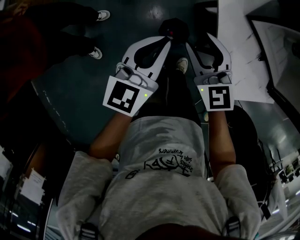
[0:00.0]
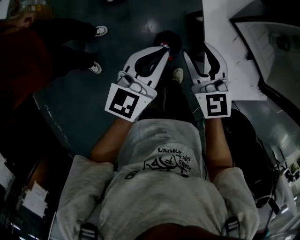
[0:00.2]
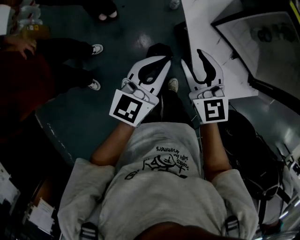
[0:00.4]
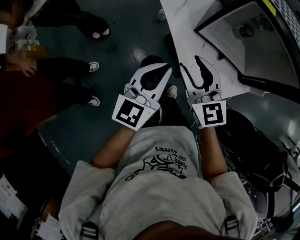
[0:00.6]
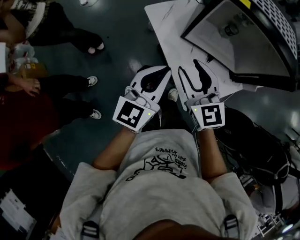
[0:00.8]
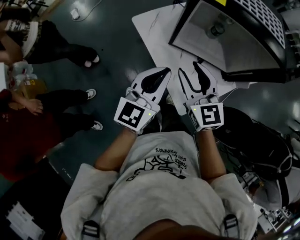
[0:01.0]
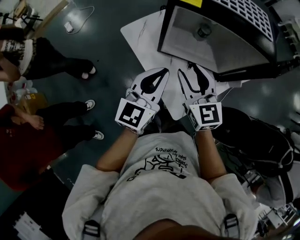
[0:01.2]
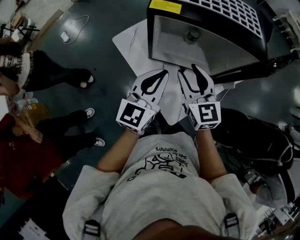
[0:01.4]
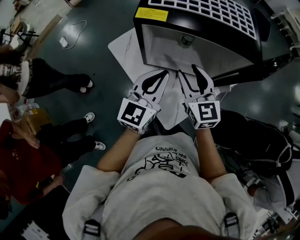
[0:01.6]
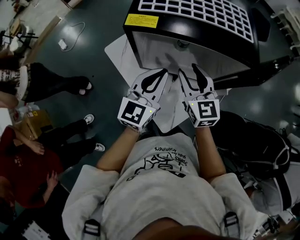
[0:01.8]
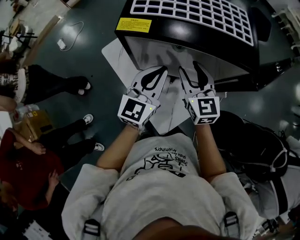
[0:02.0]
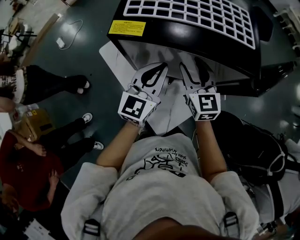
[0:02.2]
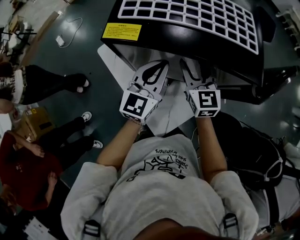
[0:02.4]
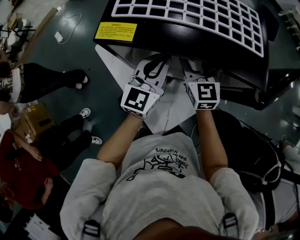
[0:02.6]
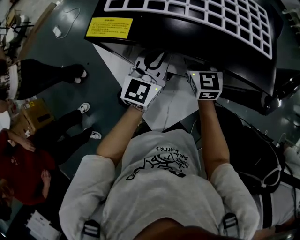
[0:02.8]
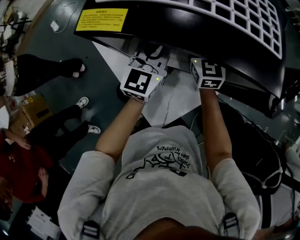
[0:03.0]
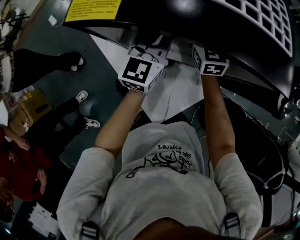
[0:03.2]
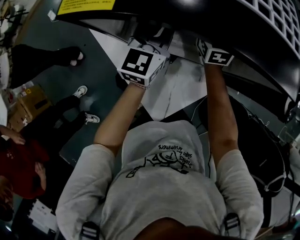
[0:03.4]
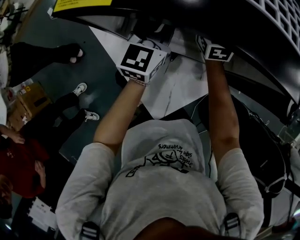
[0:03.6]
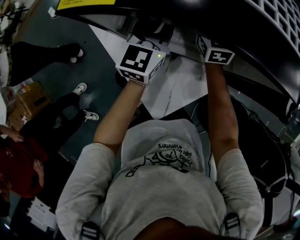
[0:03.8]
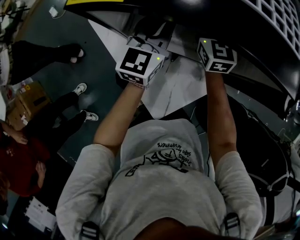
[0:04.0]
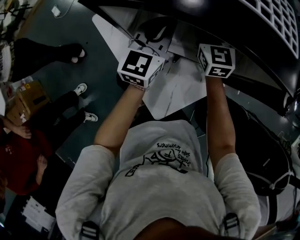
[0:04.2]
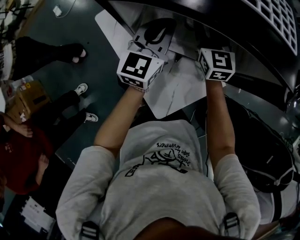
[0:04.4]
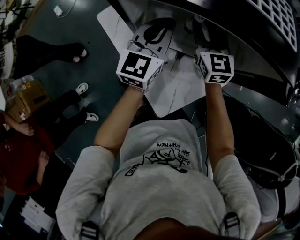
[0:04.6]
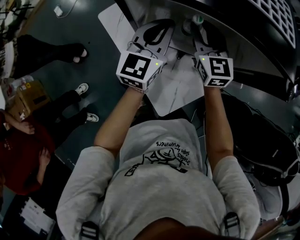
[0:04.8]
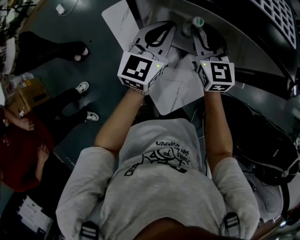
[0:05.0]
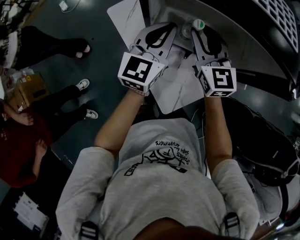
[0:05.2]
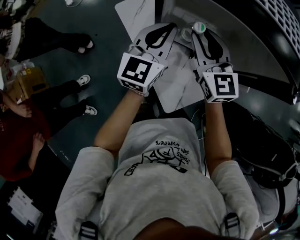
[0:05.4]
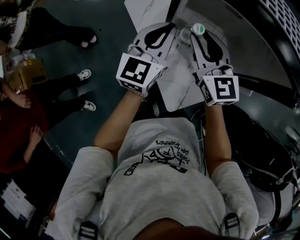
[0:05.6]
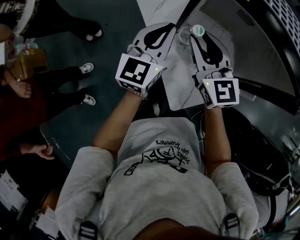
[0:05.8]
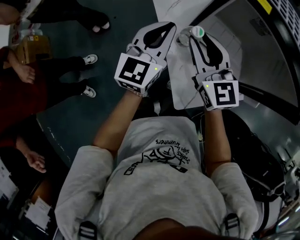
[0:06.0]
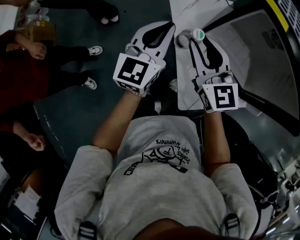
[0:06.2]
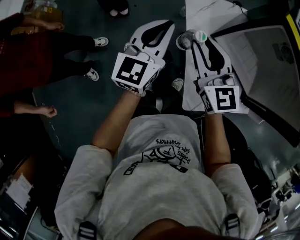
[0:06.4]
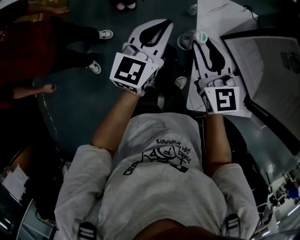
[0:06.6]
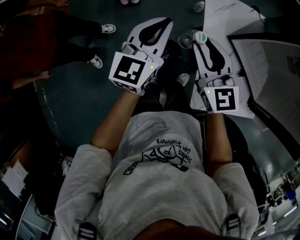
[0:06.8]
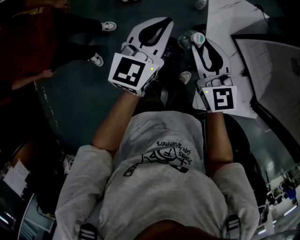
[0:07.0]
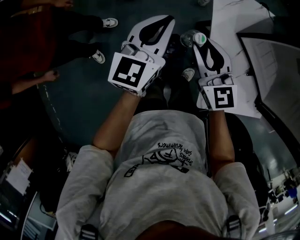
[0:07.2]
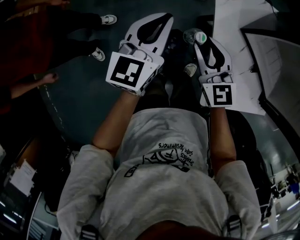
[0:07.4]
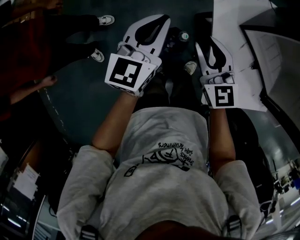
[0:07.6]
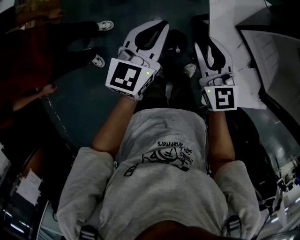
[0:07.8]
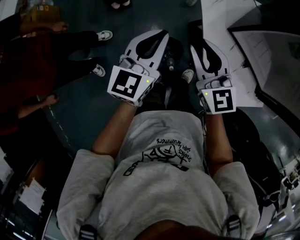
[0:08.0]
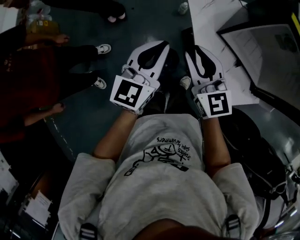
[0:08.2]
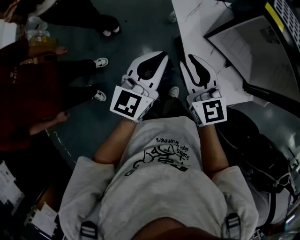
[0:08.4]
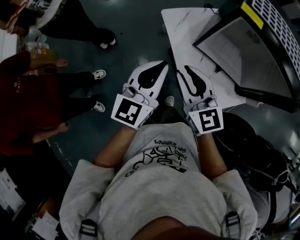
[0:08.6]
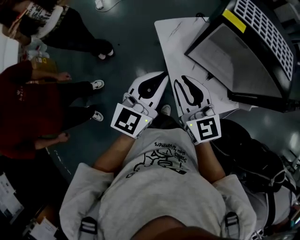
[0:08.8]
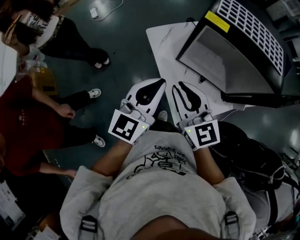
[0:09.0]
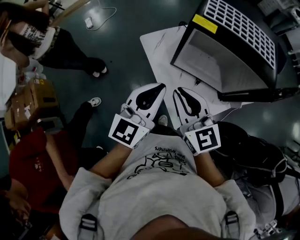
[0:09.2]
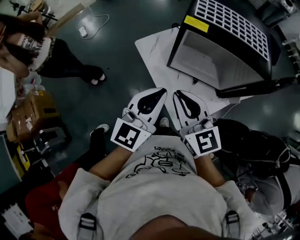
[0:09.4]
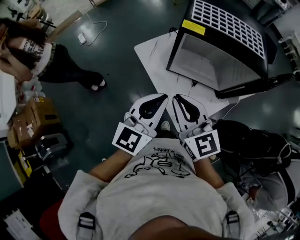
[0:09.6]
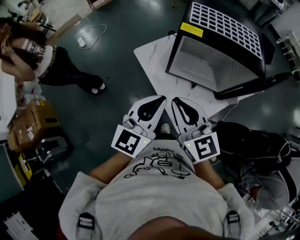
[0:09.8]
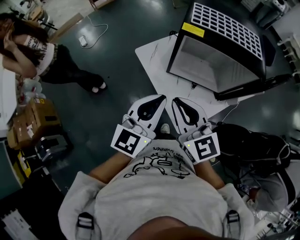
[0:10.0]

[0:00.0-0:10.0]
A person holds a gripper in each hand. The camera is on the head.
0.0 to 1.4 s: The left gripper changes place by about 35 cm, and swivels some 30 degrees. Meanwhile the right gripper shifts by roughly 35 cm, and turns by roughly 40 degrees.
1.4 to 2.8 s: The two grippers go approximately 20 cm forward and to the right.
2.8 to 4.2 s: The right gripper closes. The left gripper shifts by some 5 cm.
4.2 to 5.8 s: The right gripper is displaced backward and to the left by approximately 25 cm, and turns by approximately 20 degrees; the left gripper heads to the left and backward, covering roughly 20 cm.
5.8 to 7.2 s: The right gripper heads to the left and downward, covering about 20 cm, and rotates roughly 20 degrees; the left gripper heads to the left, covering approximately 20 cm, and turns by about 20 degrees.
7.2 to 8.6 s: The right gripper shifts roughly 15 cm upward, while the left gripper heads upward and to the right, covering roughly 15 cm, and changes its angle by some 20 degrees.
8.6 to 10.0 s: Both grippers move upward and to the right, about 15 cm.

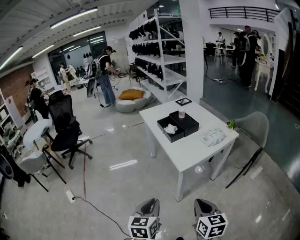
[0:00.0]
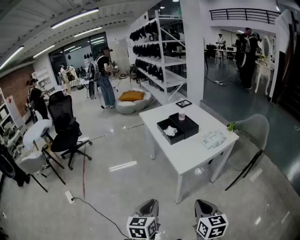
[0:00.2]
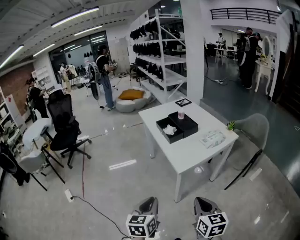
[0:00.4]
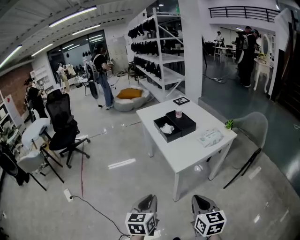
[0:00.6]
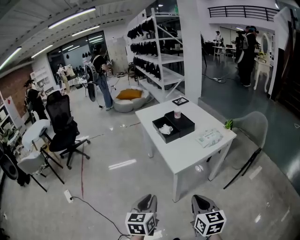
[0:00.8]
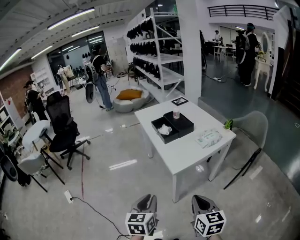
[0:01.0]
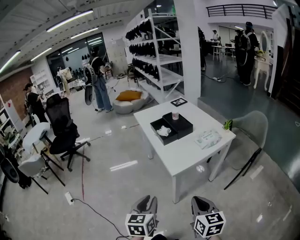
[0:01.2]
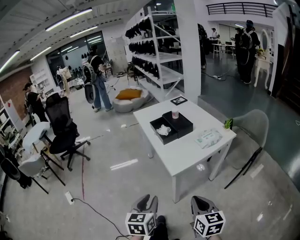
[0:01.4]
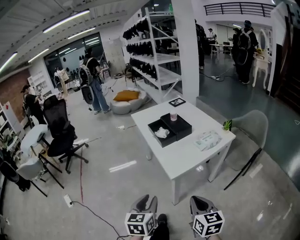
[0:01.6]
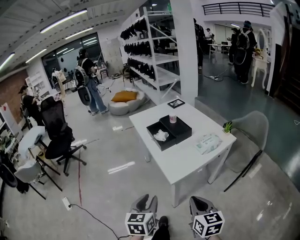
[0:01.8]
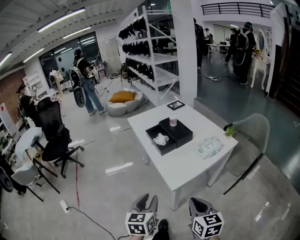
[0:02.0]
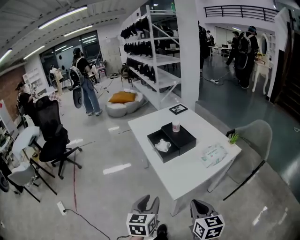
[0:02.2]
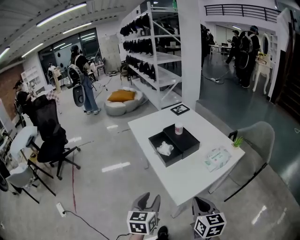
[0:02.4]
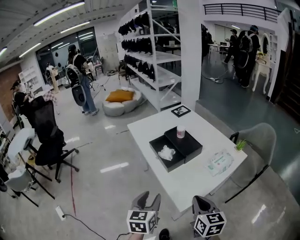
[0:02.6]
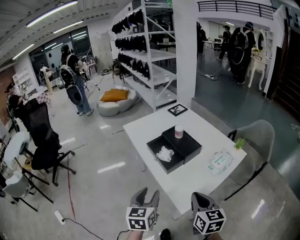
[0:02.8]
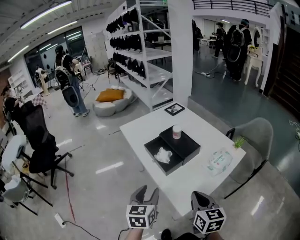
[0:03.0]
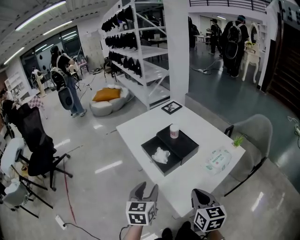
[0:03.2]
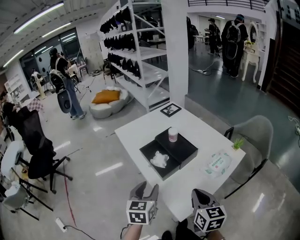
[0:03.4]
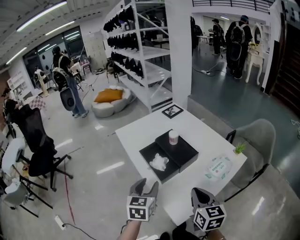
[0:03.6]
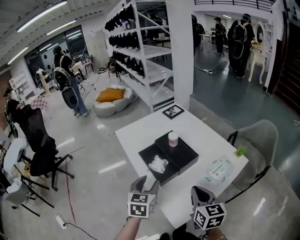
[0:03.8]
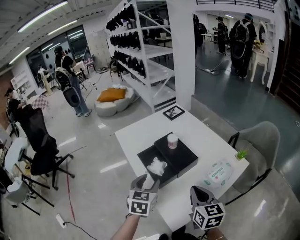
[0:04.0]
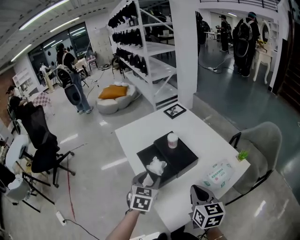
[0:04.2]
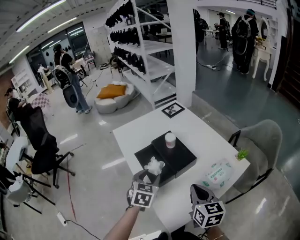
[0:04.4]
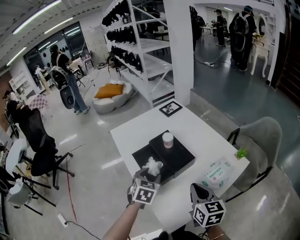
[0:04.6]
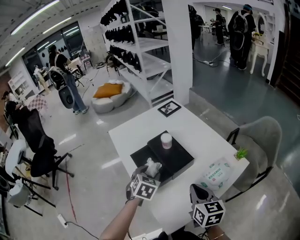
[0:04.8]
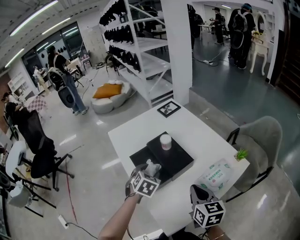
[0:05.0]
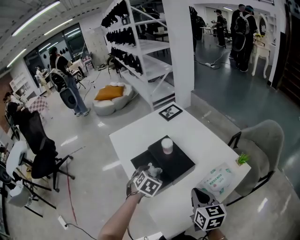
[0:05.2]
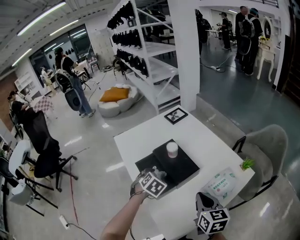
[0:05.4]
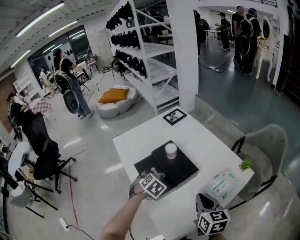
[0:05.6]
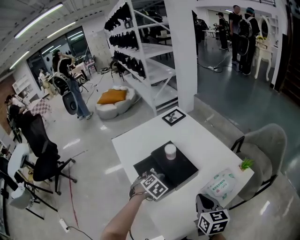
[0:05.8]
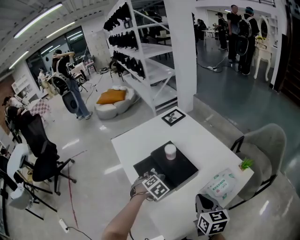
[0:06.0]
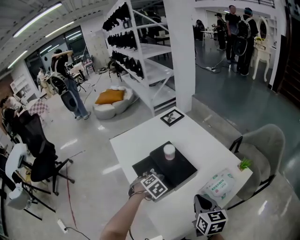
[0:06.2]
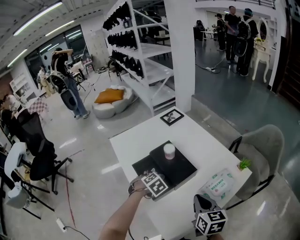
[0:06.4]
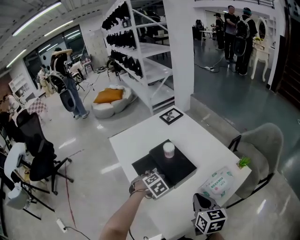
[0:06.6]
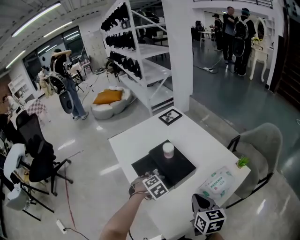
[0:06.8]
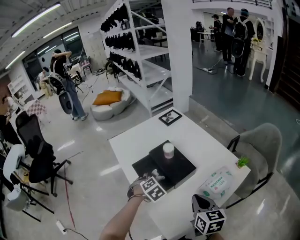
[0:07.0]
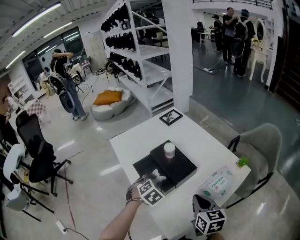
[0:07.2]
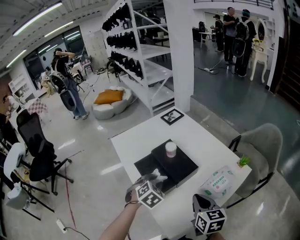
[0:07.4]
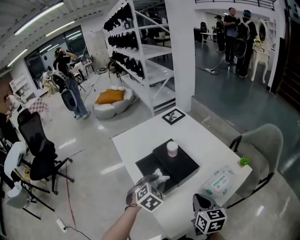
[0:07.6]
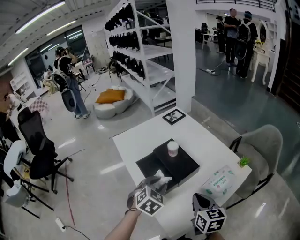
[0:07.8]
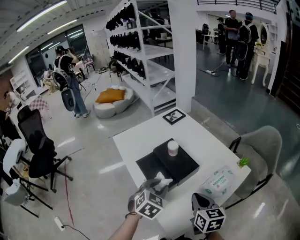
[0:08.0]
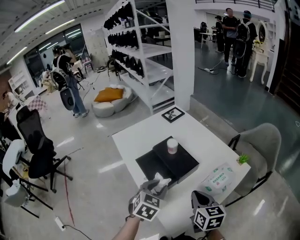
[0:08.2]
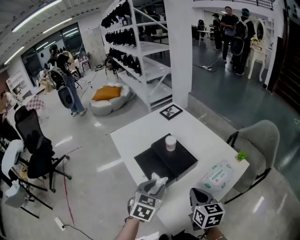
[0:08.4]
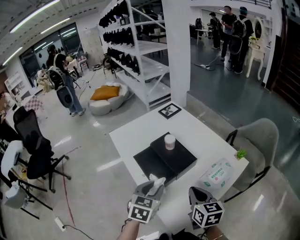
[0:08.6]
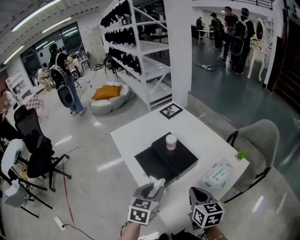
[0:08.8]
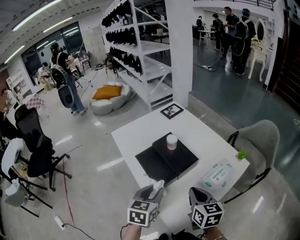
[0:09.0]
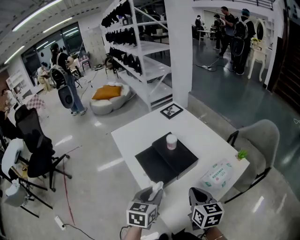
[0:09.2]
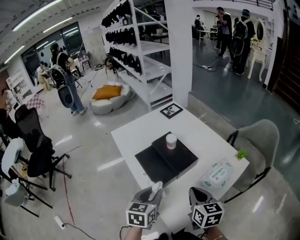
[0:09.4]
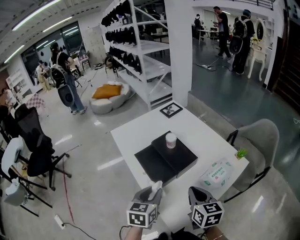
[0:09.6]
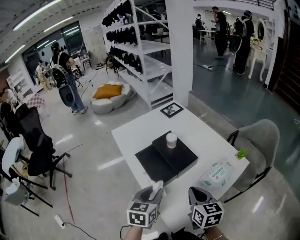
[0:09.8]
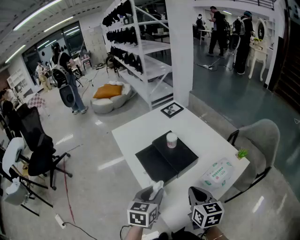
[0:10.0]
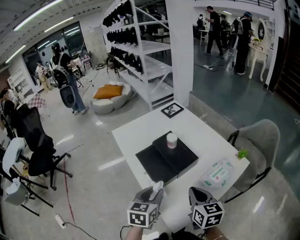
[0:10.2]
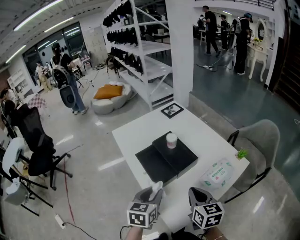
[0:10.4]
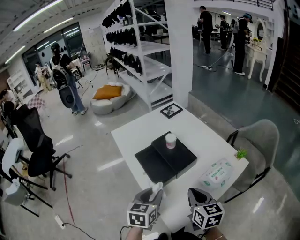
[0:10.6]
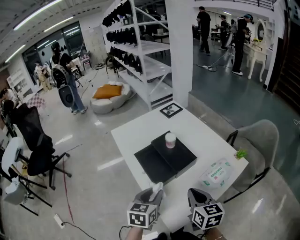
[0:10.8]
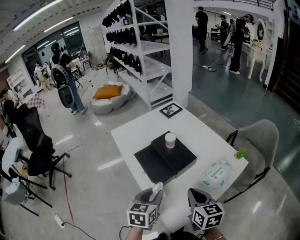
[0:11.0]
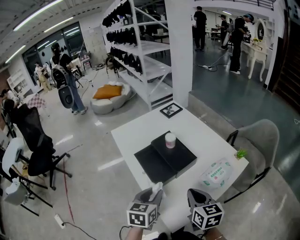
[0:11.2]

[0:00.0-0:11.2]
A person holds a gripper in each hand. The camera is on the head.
0.0 to 1.6 s: The two grippers go about 5 cm forward.
1.6 to 3.2 s: Both grippers move forward, some 30 cm.
3.2 to 4.8 s: Both grippers travel together forward and to the right, roughly 20 cm. The left gripper changes its angle by roughly 30 degrees.
4.8 to 6.4 s: The left gripper is displaced downward by about 10 cm, and swivels approximately 30 degrees.
6.4 to 8.0 s: The left gripper travels upward and backward by some 15 cm, and swivels approximately 30 degrees.
8.0 to 9.6 s: The left gripper goes about 5 cm backward, and rotates some 40 degrees.
9.6 to 11.2 s: Neither gripper changes place.

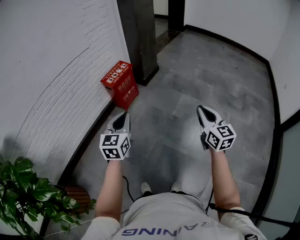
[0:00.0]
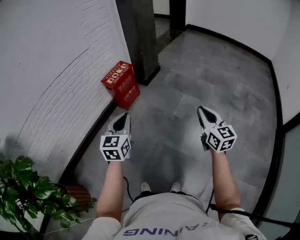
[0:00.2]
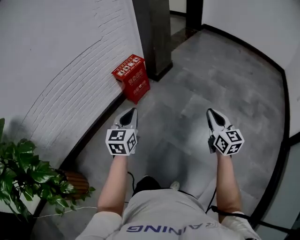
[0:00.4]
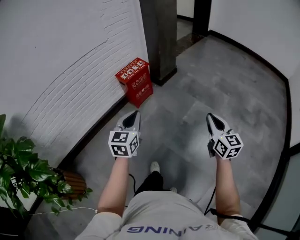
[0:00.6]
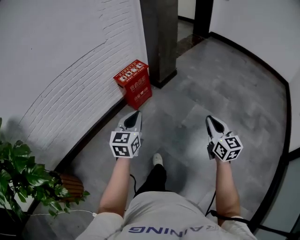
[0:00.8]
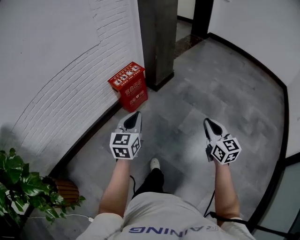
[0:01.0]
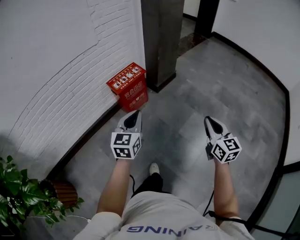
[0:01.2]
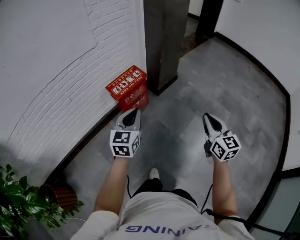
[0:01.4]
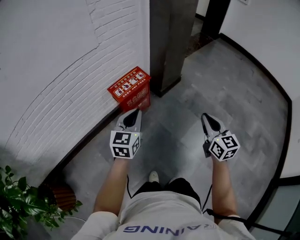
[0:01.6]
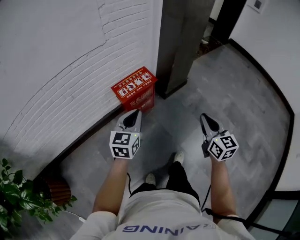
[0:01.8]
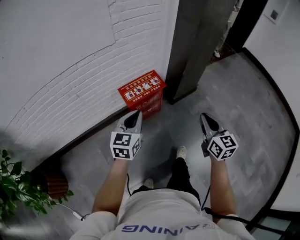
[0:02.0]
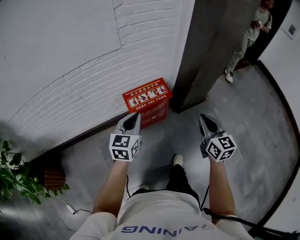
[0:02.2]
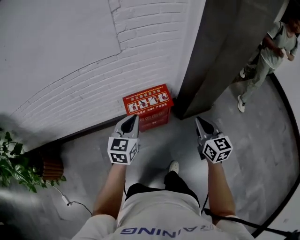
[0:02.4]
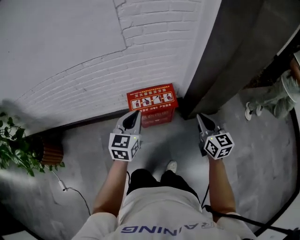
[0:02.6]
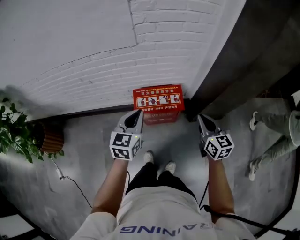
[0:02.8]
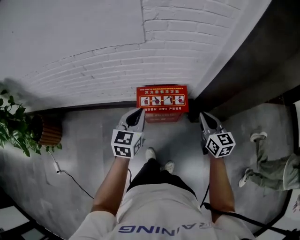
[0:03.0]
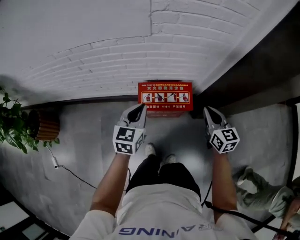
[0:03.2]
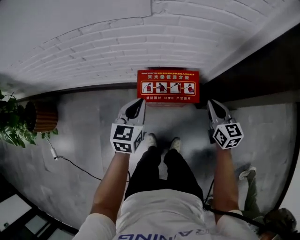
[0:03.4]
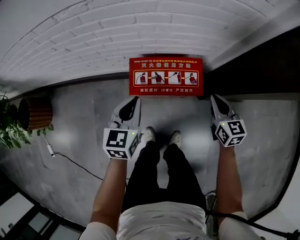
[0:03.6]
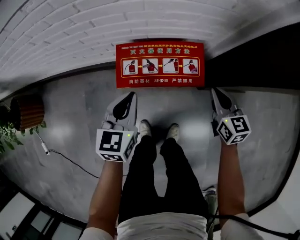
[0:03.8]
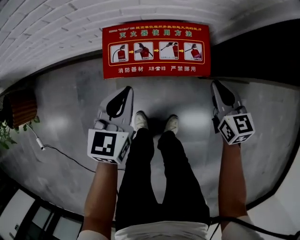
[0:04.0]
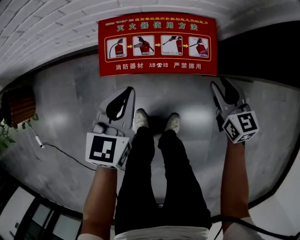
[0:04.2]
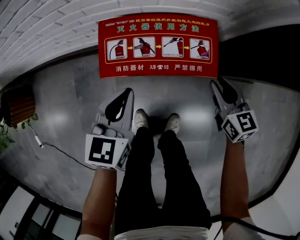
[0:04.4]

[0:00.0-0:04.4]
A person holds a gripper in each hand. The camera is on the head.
0.0 to 1.4 s: Both grippers move forward, some 35 cm.
1.4 to 3.0 s: The right gripper ends up roughly 60 cm from where it was, and turns by some 50 degrees. The left gripper moves about 35 cm, and changes its angle by approximately 40 degrees.
3.0 to 4.4 s: The grippers both shift downward by roughly 30 cm. The right gripper opens.
